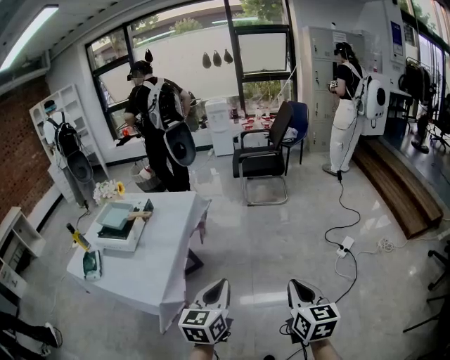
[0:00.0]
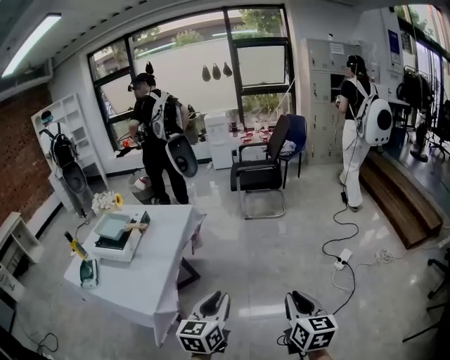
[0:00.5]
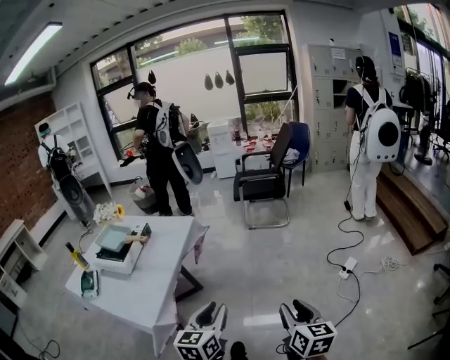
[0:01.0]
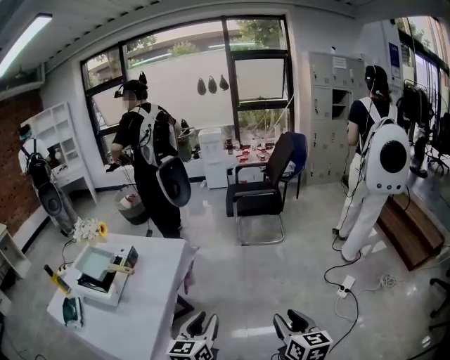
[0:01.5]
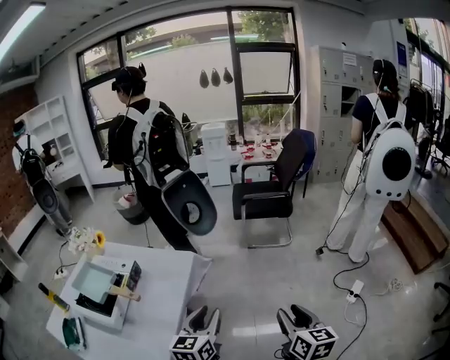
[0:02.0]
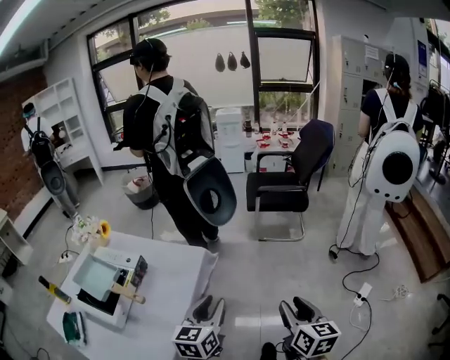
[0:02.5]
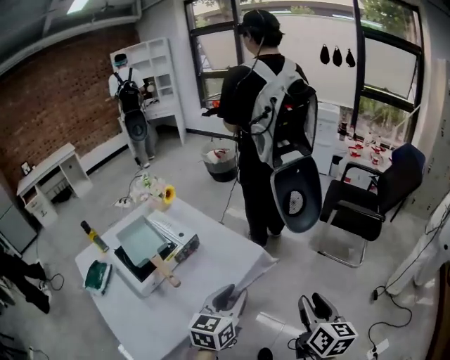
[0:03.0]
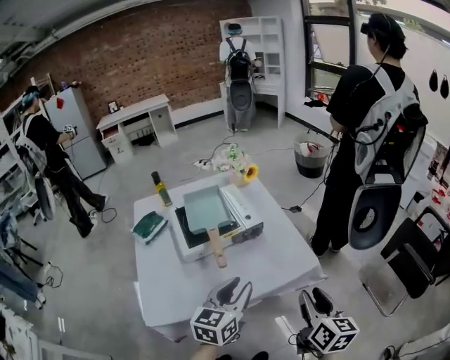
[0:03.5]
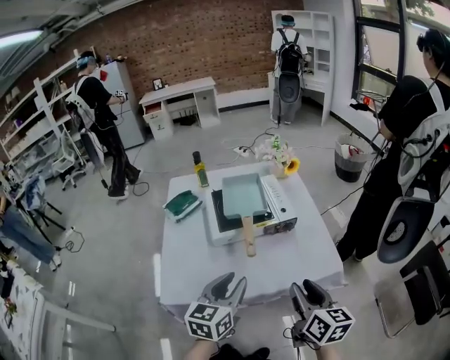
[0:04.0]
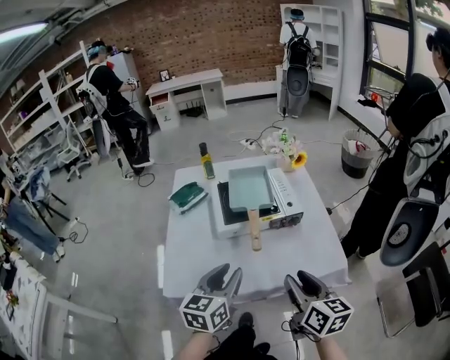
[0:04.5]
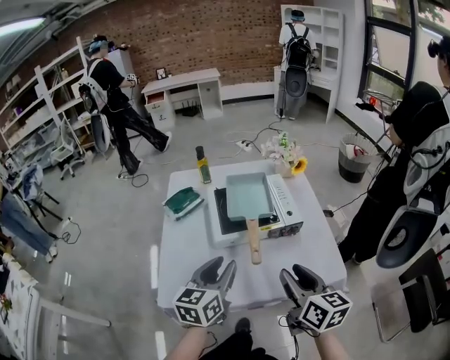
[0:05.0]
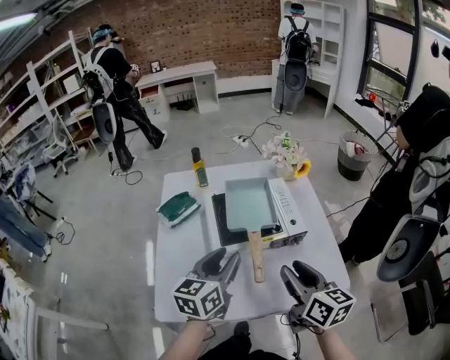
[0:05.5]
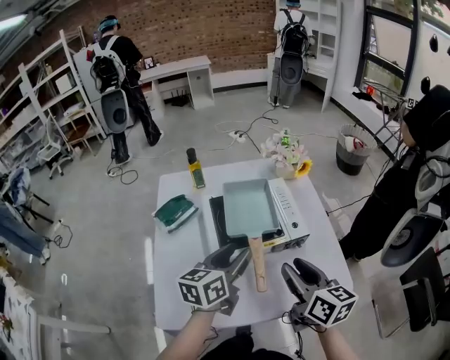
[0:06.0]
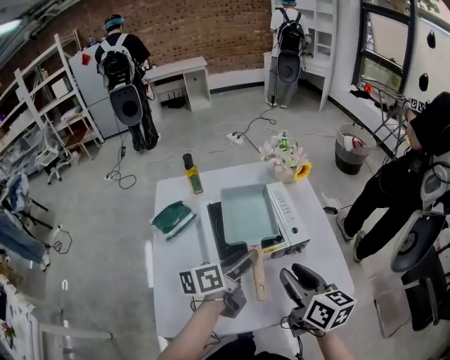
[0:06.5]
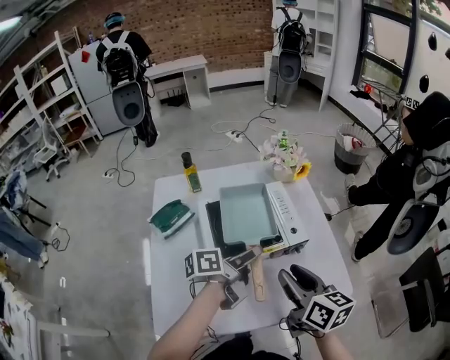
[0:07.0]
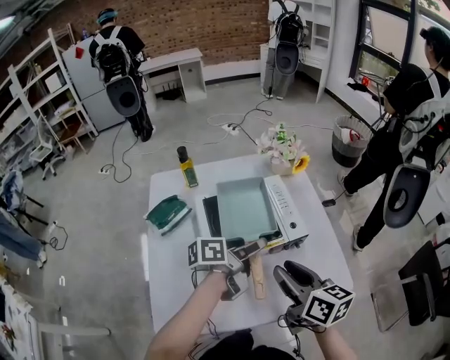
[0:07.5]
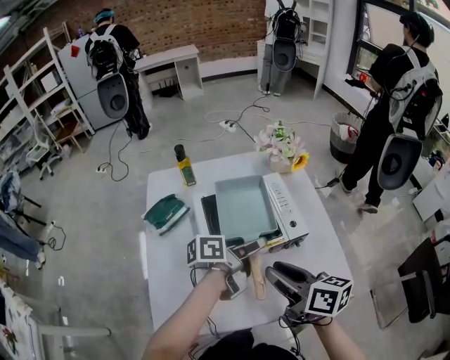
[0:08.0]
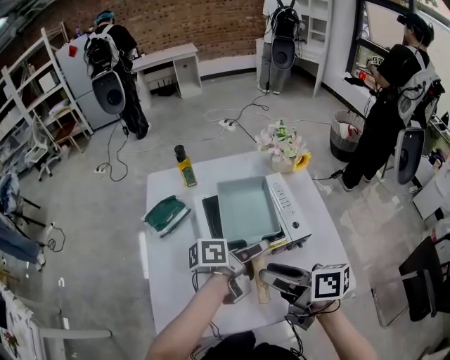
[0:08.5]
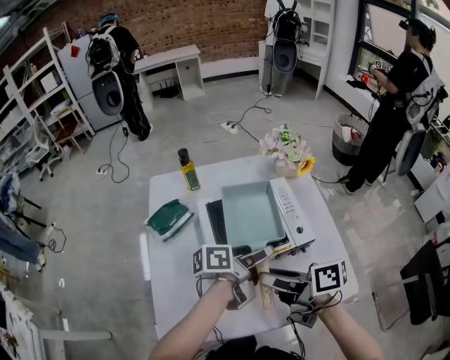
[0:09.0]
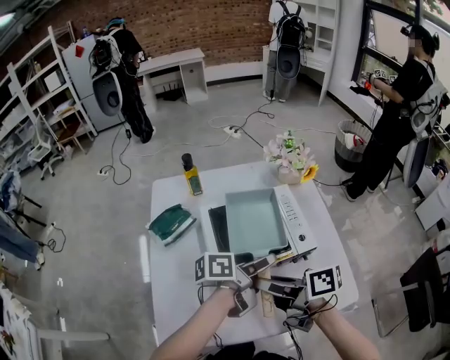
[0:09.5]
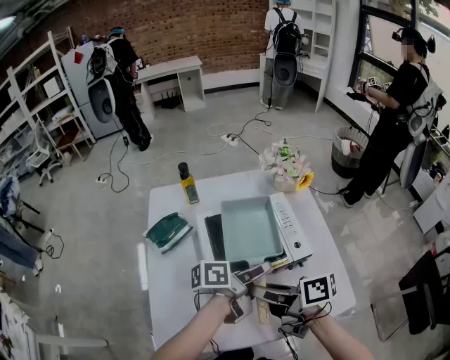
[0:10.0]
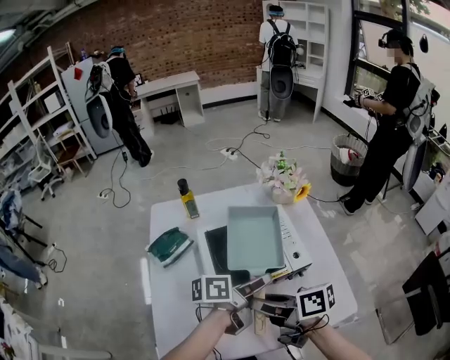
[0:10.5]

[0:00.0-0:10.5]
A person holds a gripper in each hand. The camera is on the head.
0:00.0 to 0:02.0: The two grippers go some 30 cm forward. The right gripper opens its fingers. The left gripper opens.
0:02.0 to 0:04.0: The left gripper changes place by some 20 cm, and changes its angle by approximately 60 degrees; the right gripper moves roughly 40 cm, and rotates about 80 degrees.
0:04.0 to 0:06.5: Both grippers travel together forward, some 20 cm. The left gripper rotates roughly 40 degrees, and opens its fingers.
0:06.5 to 0:08.5: The right gripper travels to the left by some 5 cm, and rotates roughly 30 degrees. The left gripper moves some 5 cm, and swivels roughly 20 degrees.
0:08.5 to 0:10.5: There are only small adjustments of the grippers.

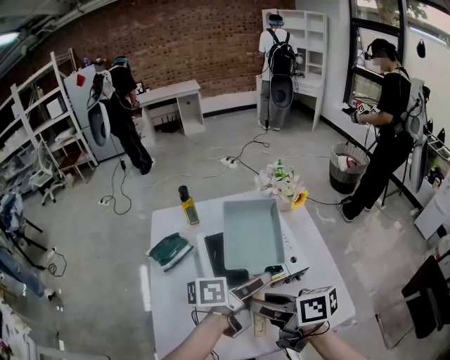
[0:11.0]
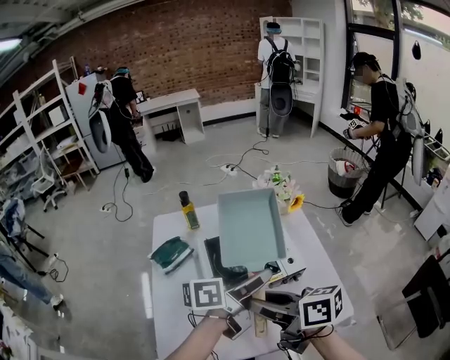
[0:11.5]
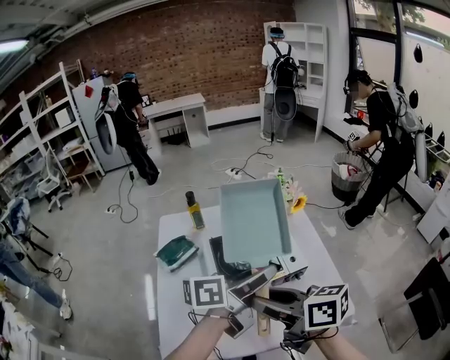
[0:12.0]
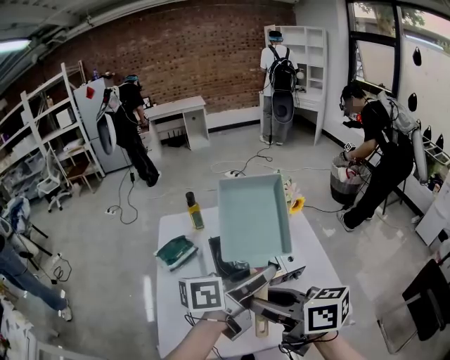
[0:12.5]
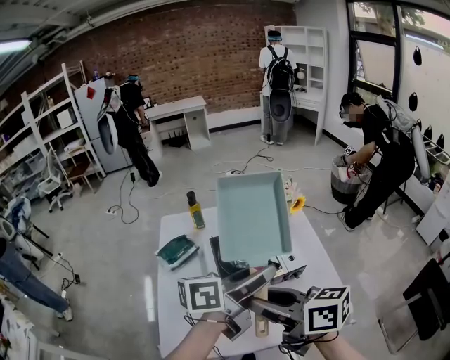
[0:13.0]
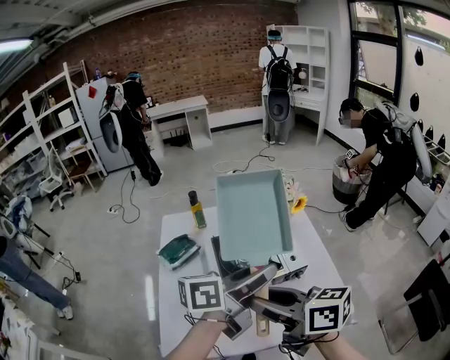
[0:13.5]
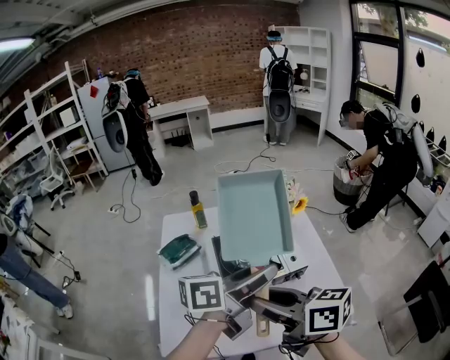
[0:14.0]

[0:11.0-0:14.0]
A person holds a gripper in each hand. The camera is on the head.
0:11.0 to 0:12.5: The right gripper travels upward by about 10 cm. Meanwhile the left gripper goes approximately 15 cm upward and backward.
0:12.5 to 0:14.0: Neither gripper changes place.

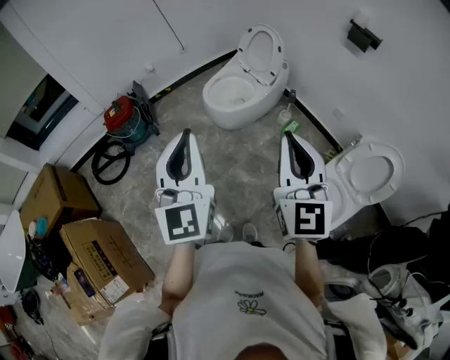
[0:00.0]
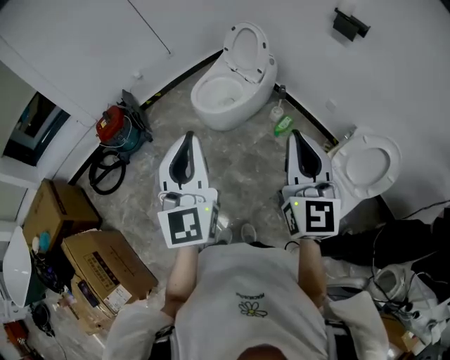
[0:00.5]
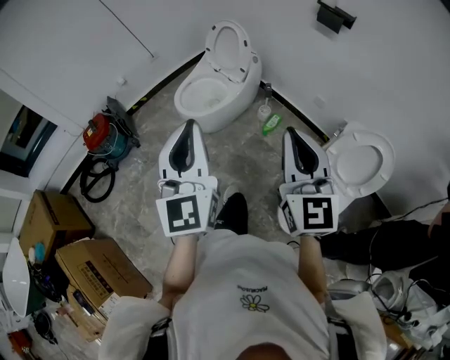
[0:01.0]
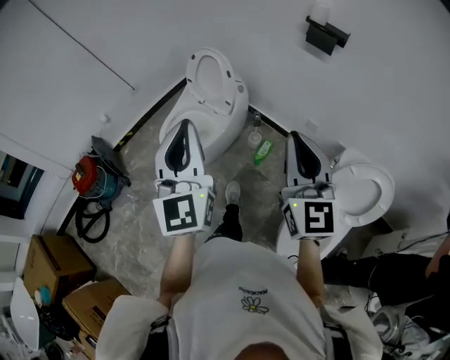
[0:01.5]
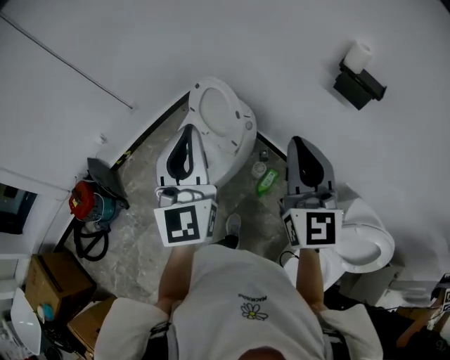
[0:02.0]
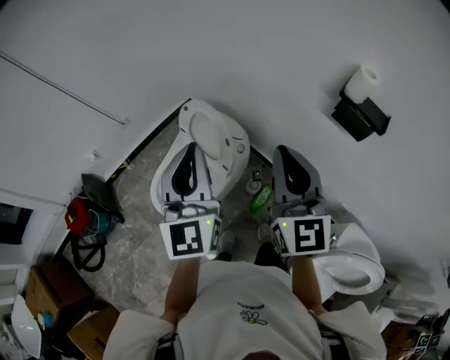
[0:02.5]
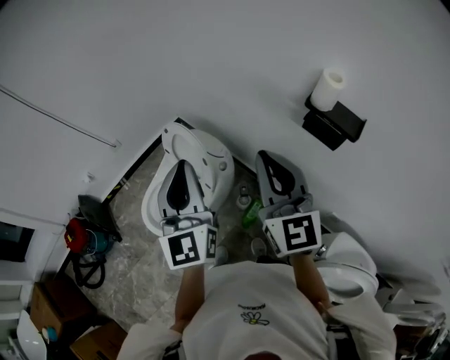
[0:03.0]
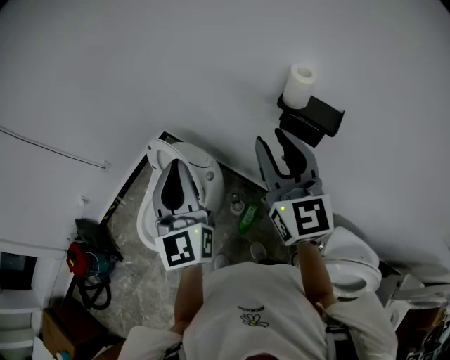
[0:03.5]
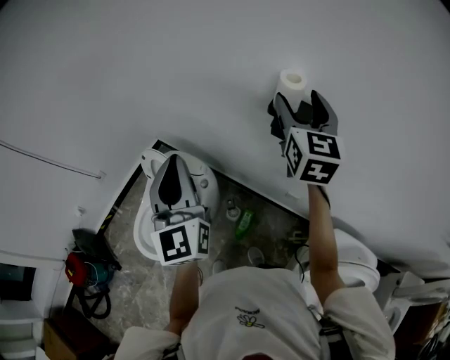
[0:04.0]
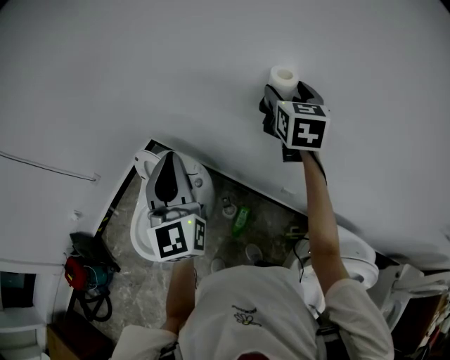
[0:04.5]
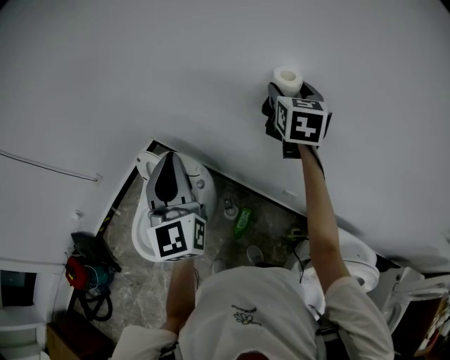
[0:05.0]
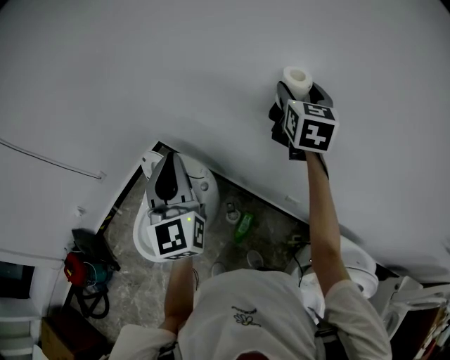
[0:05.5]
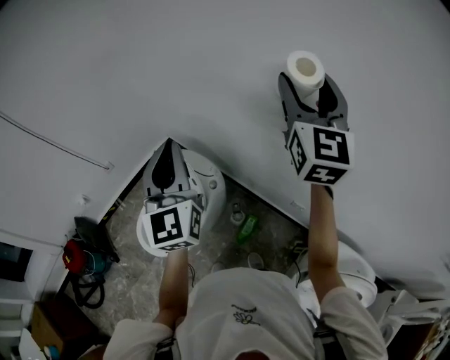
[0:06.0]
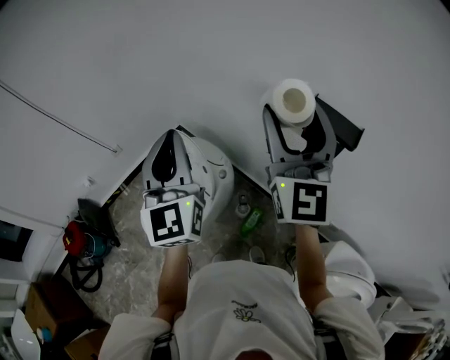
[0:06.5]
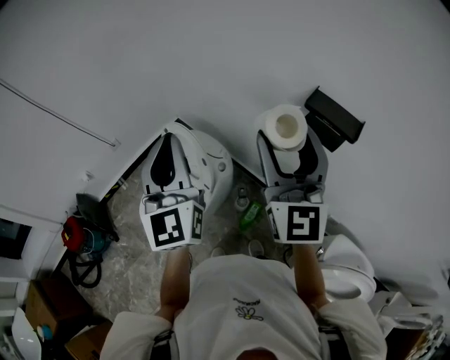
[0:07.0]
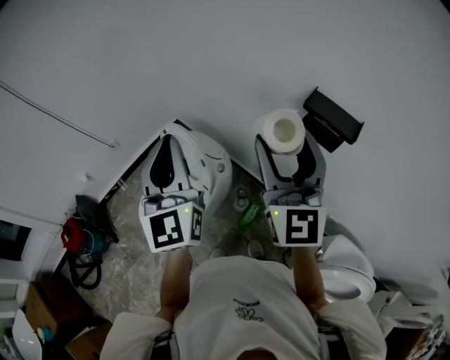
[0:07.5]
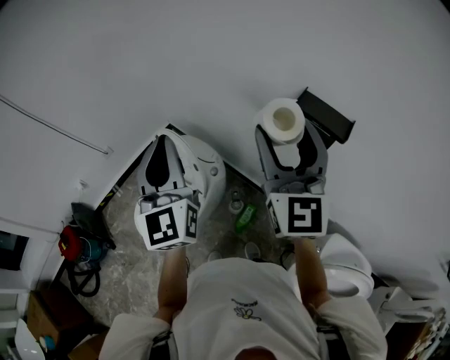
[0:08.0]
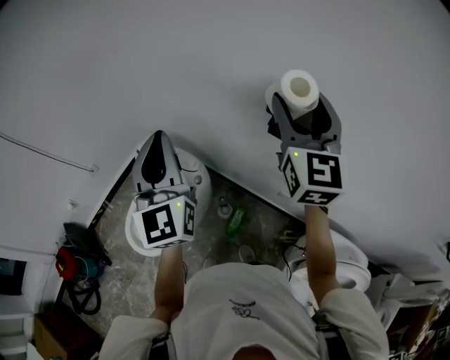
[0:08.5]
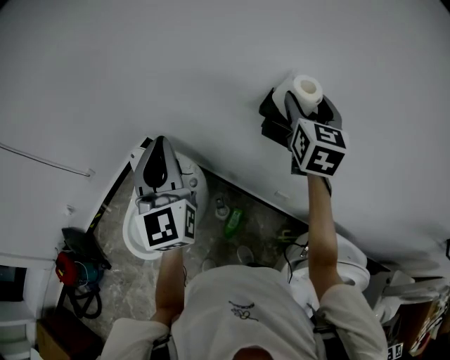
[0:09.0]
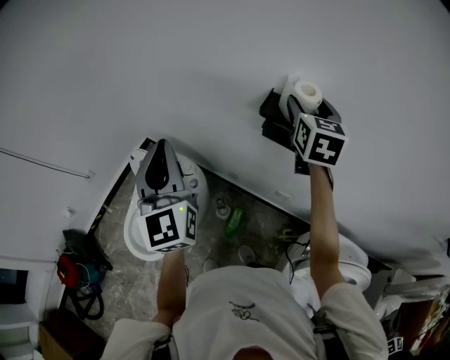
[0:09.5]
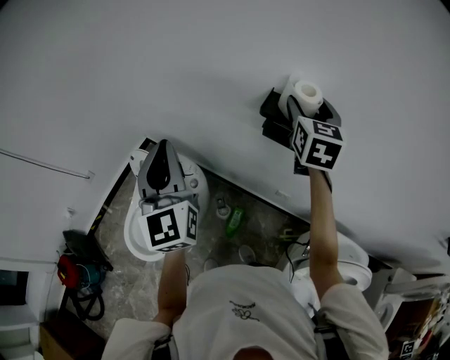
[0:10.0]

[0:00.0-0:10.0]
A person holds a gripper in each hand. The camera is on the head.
0:00.0 to 0:02.0: The two grippers travel together, forward, approximately 50 cm.
0:02.0 to 0:04.0: The right gripper goes some 40 cm to the right and forward, and opens its fingers. Meanwhile the left gripper shifts roughly 25 cm to the right and forward.
0:04.0 to 0:06.0: The right gripper heads upward and to the left, covering roughly 10 cm.
0:06.0 to 0:08.0: The right gripper travels to the left, backward and downward by some 15 cm.
0:08.0 to 0:10.0: The left gripper travels to the right and forward by about 10 cm, while the right gripper goes approximately 25 cm to the right and forward, and rotates roughly 40 degrees.

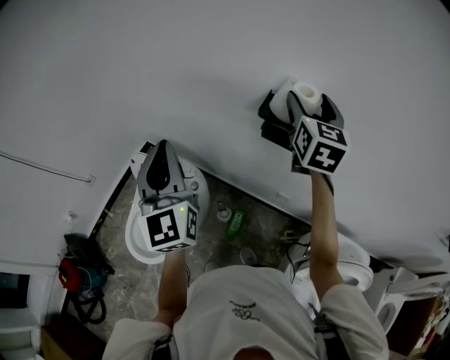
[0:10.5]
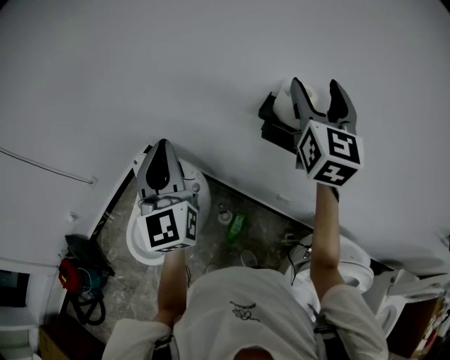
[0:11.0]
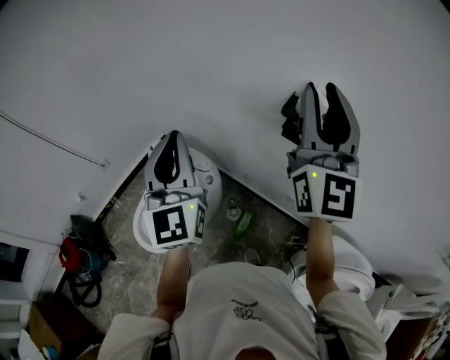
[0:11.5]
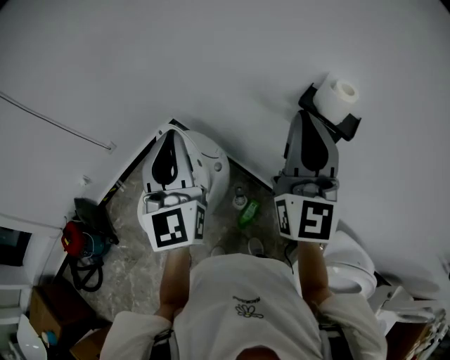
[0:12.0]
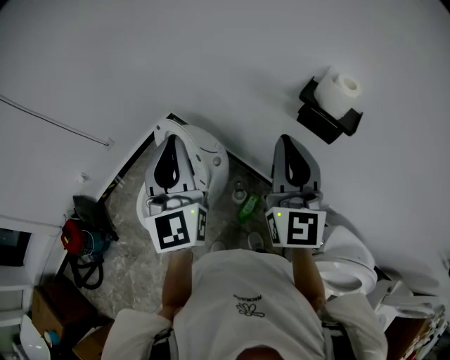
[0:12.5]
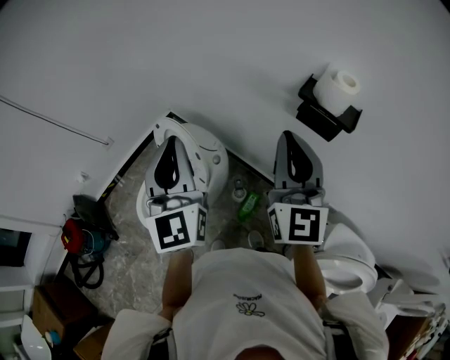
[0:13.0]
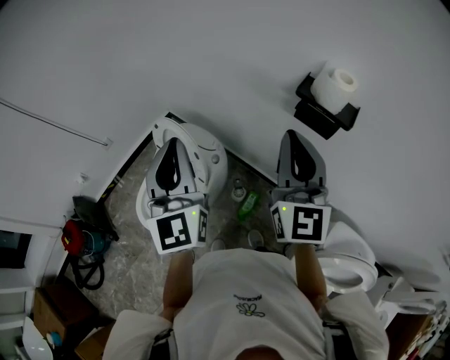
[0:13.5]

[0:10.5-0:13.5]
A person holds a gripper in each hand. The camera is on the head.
0:10.5 to 0:12.0: The right gripper travels to the left and backward by roughly 20 cm, rotates approximately 30 degrees, and closes up. Meanwhile the left gripper is displaced backward and to the left by approximately 10 cm.
0:12.0 to 0:13.5: The right gripper travels downward by some 10 cm.
